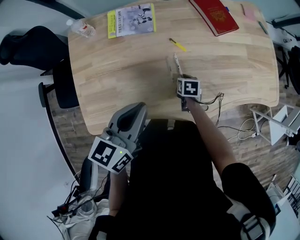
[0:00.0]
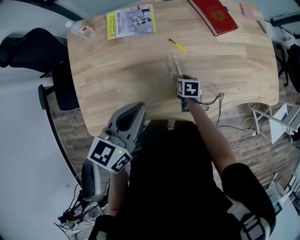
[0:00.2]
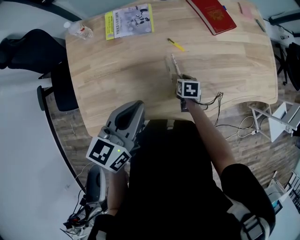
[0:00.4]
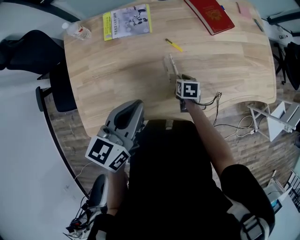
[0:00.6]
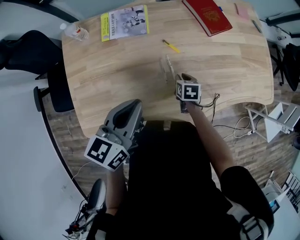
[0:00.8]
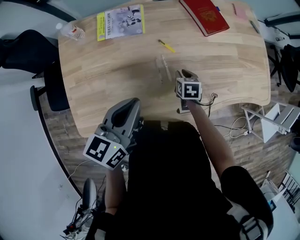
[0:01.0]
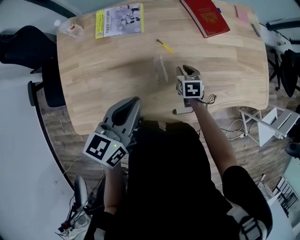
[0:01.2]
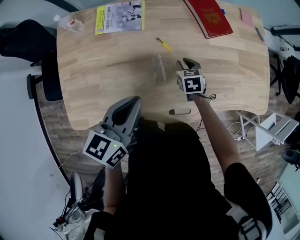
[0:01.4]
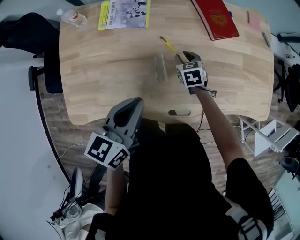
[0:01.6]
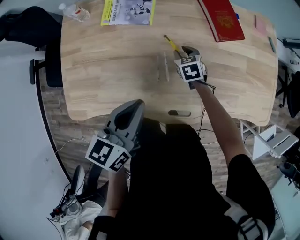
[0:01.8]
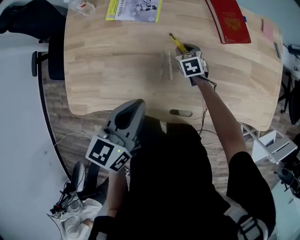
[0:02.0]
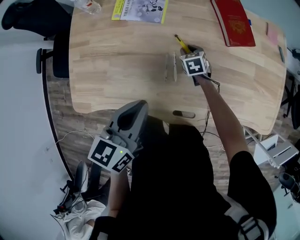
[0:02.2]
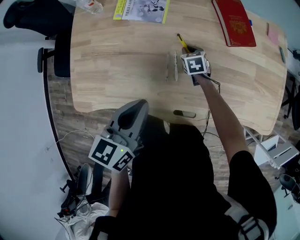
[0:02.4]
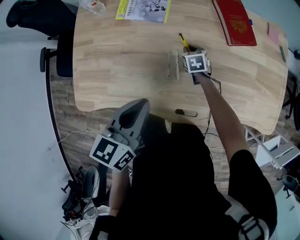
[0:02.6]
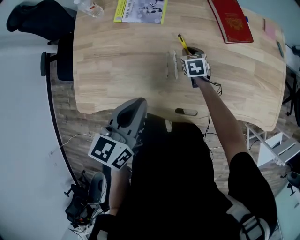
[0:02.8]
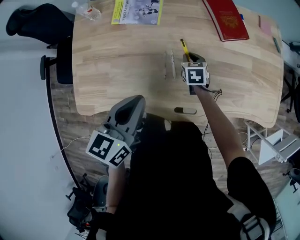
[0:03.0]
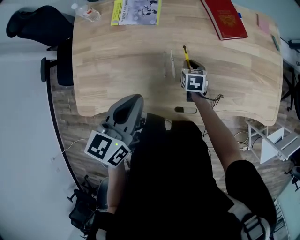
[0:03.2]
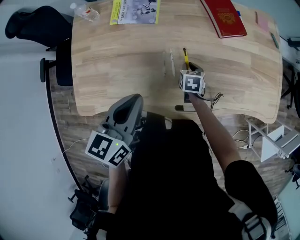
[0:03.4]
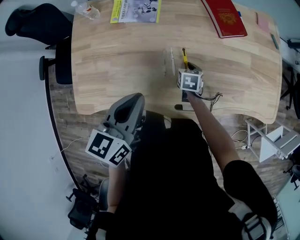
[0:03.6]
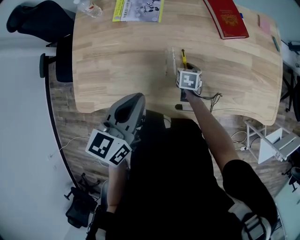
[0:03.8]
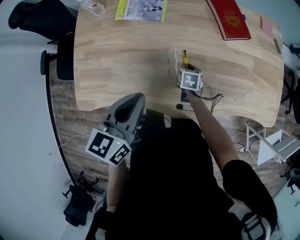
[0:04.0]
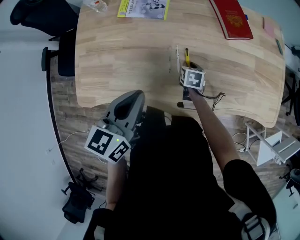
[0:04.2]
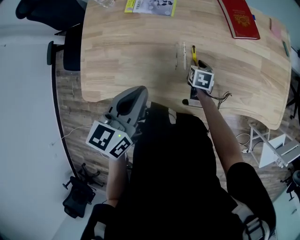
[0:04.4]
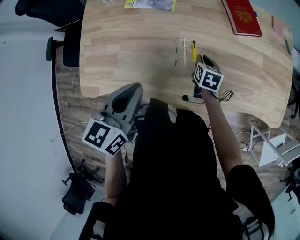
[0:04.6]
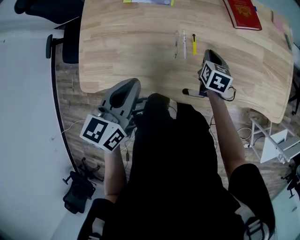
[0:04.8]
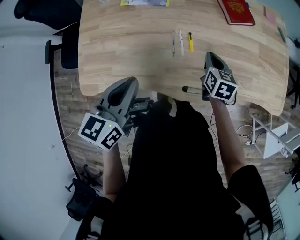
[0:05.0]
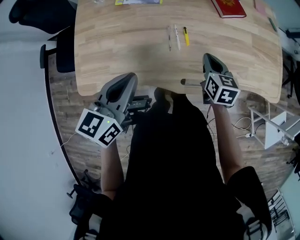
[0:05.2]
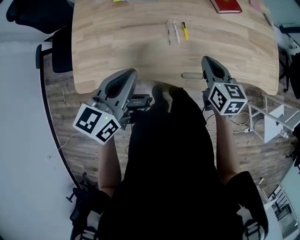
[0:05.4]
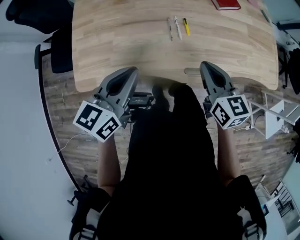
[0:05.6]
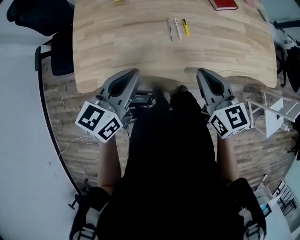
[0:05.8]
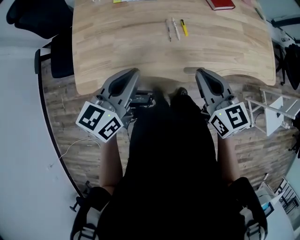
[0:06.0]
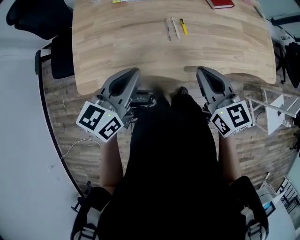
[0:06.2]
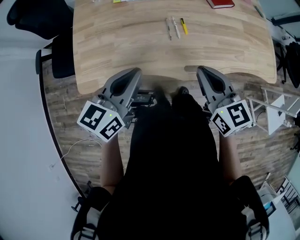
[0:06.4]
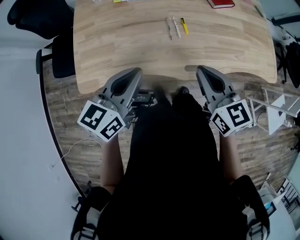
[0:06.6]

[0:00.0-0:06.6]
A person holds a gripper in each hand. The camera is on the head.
0:00.0 to 0:01.6: The right gripper goes about 10 cm forward, and rotates approximately 30 degrees. Meanwhile the left gripper is displaced to the right by about 5 cm.
0:01.6 to 0:03.2: The right gripper ends up about 5 cm from where it was.
0:03.2 to 0:05.0: The right gripper is displaced upward and backward by about 15 cm. Meanwhile the left gripper travels backward by approximately 5 cm.
0:05.0 to 0:06.6: The right gripper heads backward and upward, covering roughly 30 cm, and turns by about 30 degrees; the left gripper travels backward by approximately 10 cm.

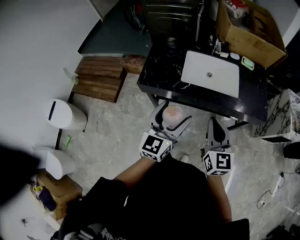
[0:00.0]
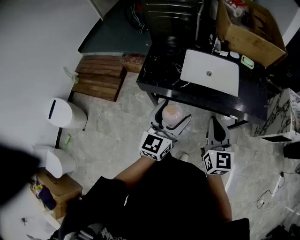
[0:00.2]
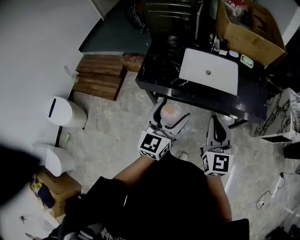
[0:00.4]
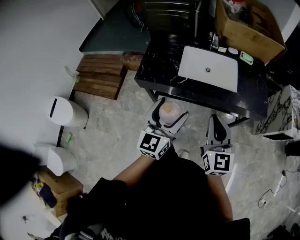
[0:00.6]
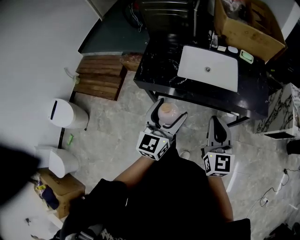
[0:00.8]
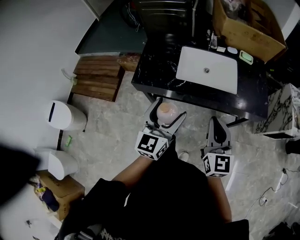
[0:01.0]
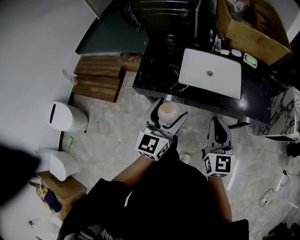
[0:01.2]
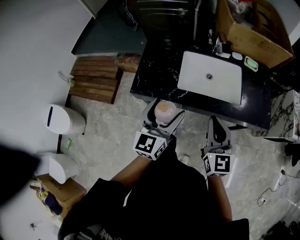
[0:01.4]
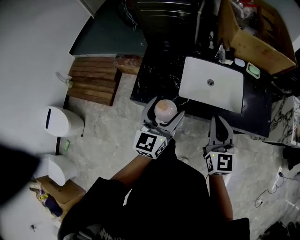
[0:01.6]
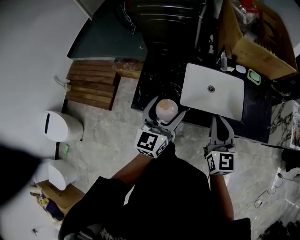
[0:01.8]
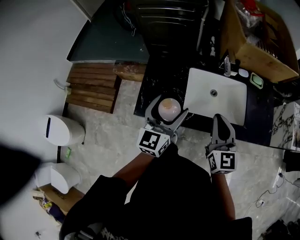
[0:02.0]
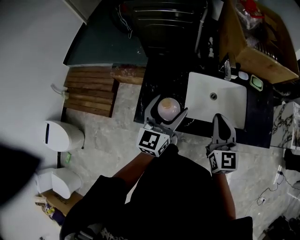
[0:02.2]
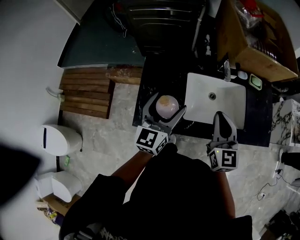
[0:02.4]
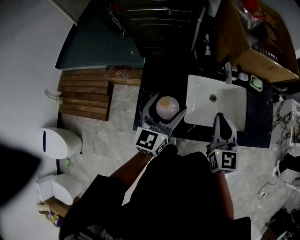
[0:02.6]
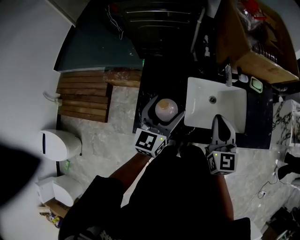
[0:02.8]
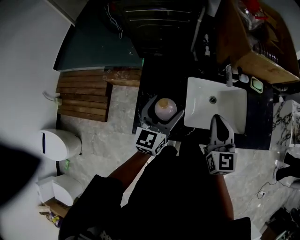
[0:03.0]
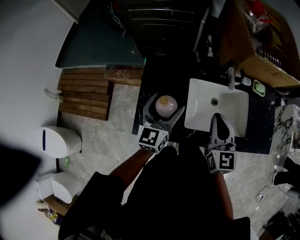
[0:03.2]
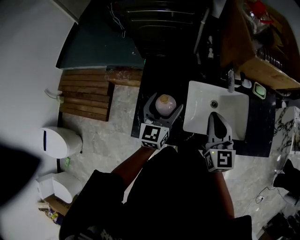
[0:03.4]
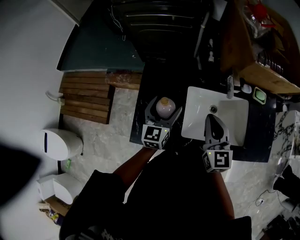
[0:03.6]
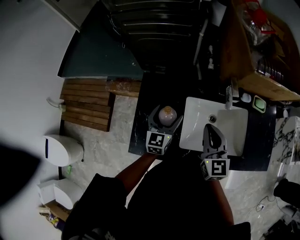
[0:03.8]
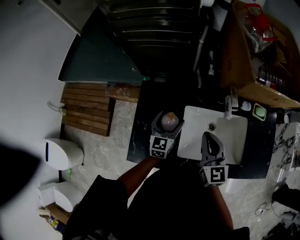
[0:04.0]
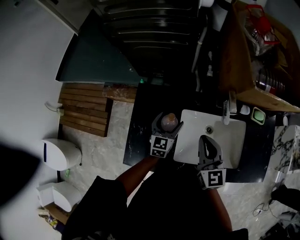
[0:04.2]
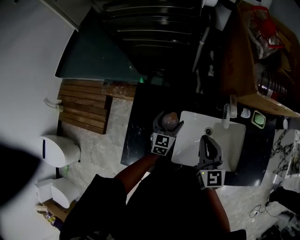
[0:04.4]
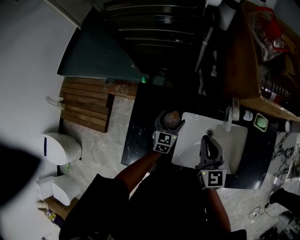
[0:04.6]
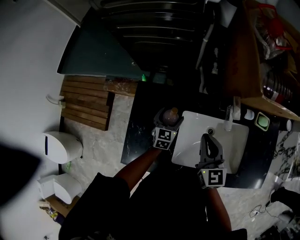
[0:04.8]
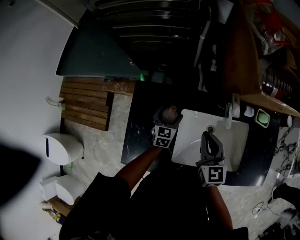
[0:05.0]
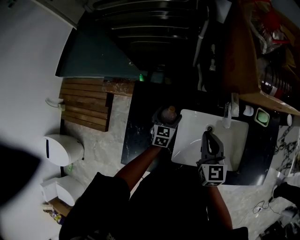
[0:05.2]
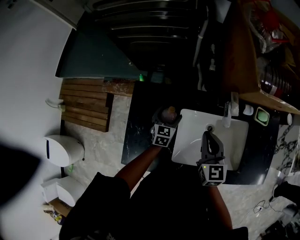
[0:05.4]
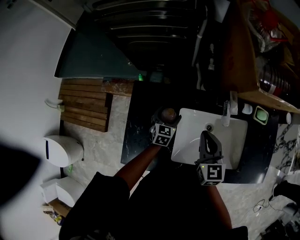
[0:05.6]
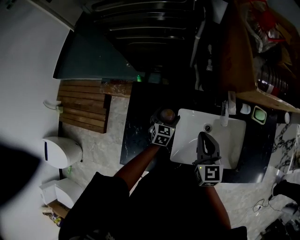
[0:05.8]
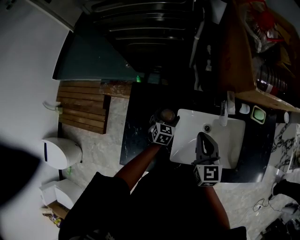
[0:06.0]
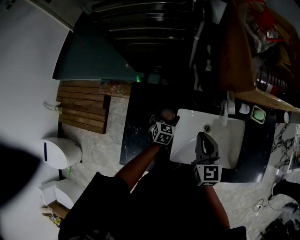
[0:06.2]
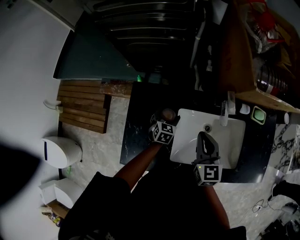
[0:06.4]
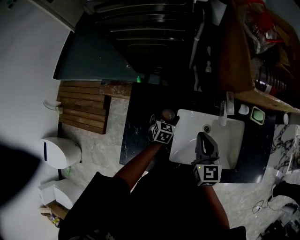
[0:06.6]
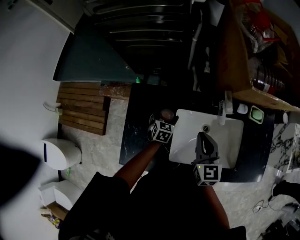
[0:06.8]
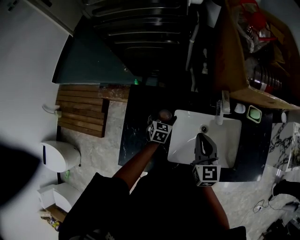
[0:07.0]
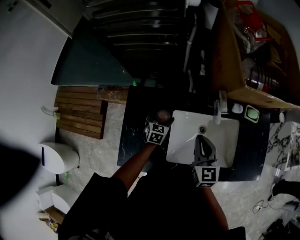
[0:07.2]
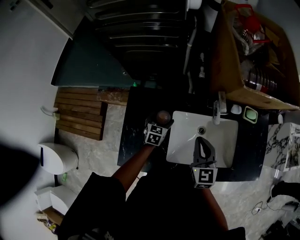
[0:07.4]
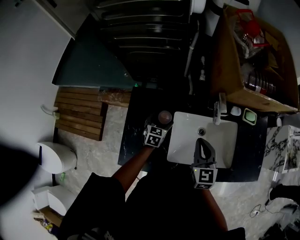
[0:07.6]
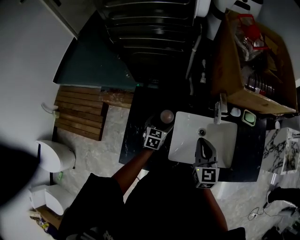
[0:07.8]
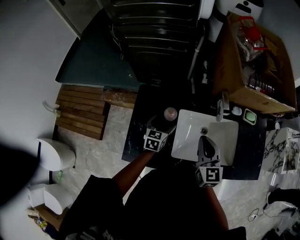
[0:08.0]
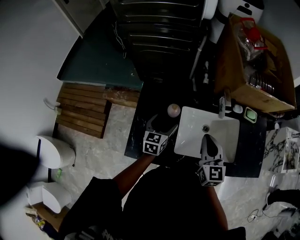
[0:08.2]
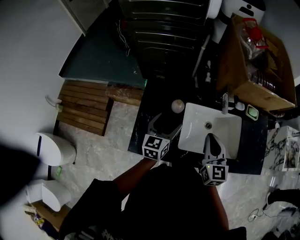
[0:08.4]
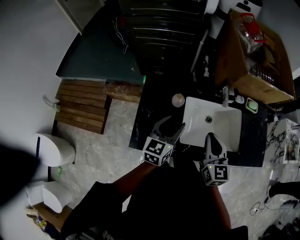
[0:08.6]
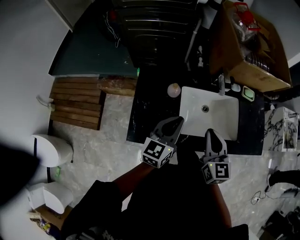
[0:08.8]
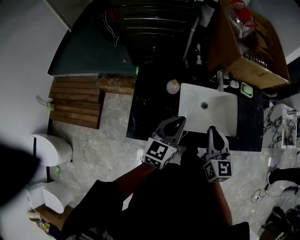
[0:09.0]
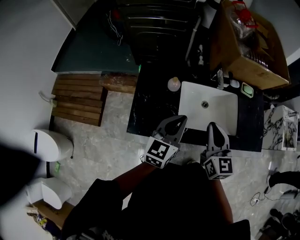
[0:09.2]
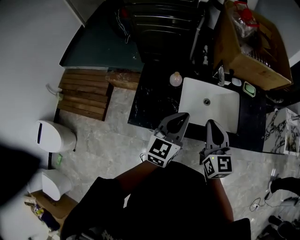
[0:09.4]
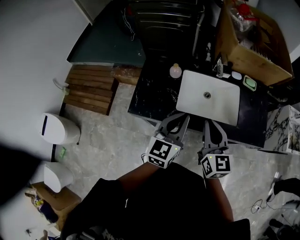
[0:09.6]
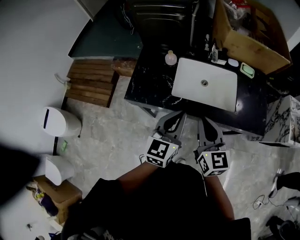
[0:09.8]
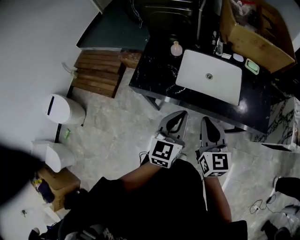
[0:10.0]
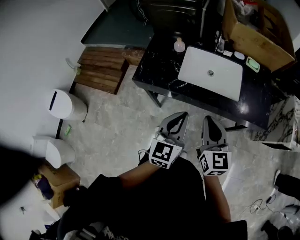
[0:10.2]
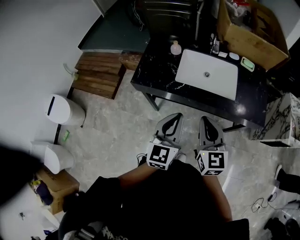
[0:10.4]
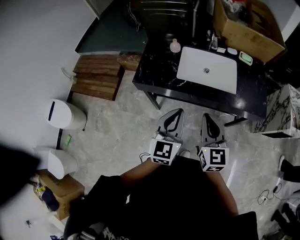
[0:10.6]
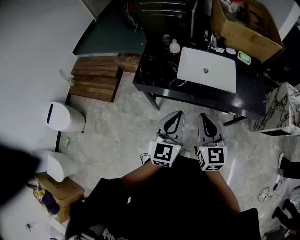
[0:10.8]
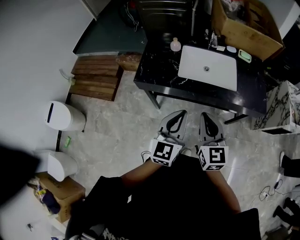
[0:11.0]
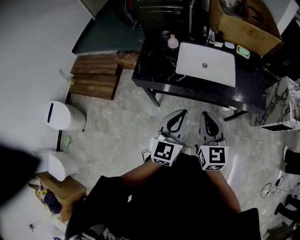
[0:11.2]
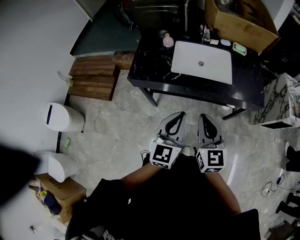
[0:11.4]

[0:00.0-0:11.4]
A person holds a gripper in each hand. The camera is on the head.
0:00.0 to 0:01.4: The grippers both shift forward by some 10 cm.
0:01.4 to 0:02.8: Both grippers move forward and to the left, some 25 cm.
0:02.8 to 0:04.2: The right gripper is displaced forward and downward by about 15 cm. Meanwhile the left gripper shifts approximately 25 cm downward and forward.
0:04.2 to 0:05.6: The left gripper shifts roughly 10 cm downward. Meanwhile the right gripper moves roughly 5 cm.
0:05.6 to 0:07.2: There are only small adjustments of the grippers.
0:07.2 to 0:08.6: The right gripper moves backward and upward, approximately 15 cm, while the left gripper heads upward and backward, covering roughly 30 cm, and changes its angle by some 30 degrees.
0:08.6 to 0:10.0: The grippers both shift backward and to the right by about 30 cm. The left gripper closes its fingers.
0:10.0 to 0:11.4: The grippers both shift backward by roughly 10 cm.

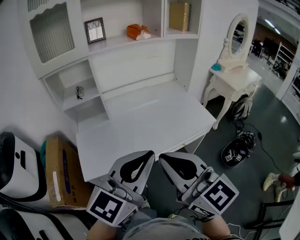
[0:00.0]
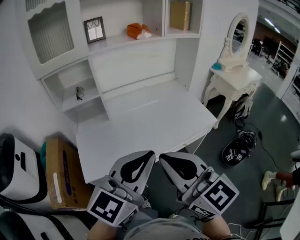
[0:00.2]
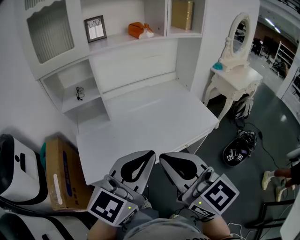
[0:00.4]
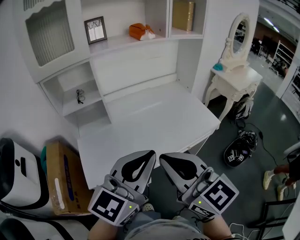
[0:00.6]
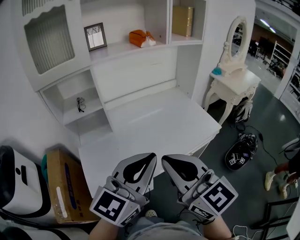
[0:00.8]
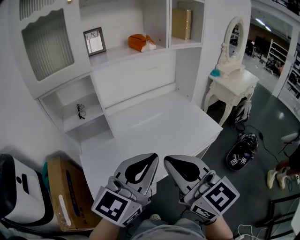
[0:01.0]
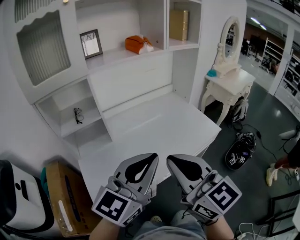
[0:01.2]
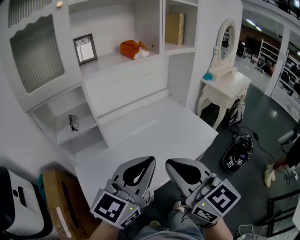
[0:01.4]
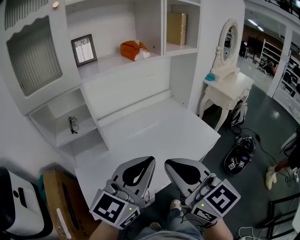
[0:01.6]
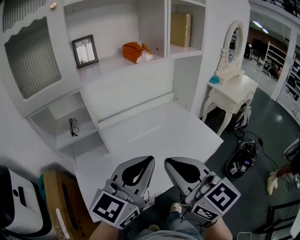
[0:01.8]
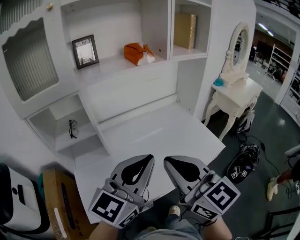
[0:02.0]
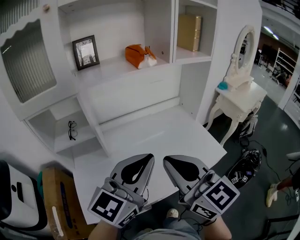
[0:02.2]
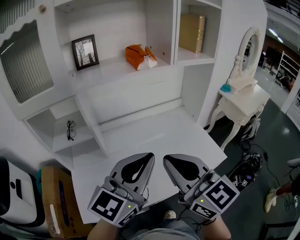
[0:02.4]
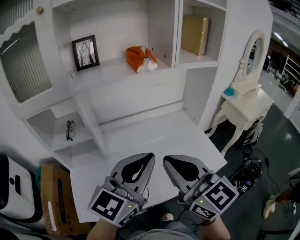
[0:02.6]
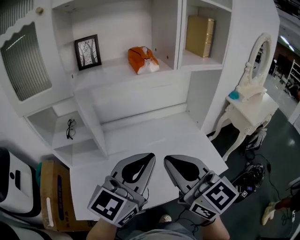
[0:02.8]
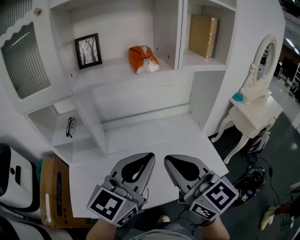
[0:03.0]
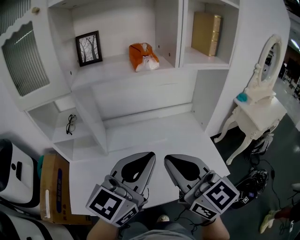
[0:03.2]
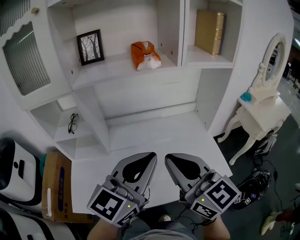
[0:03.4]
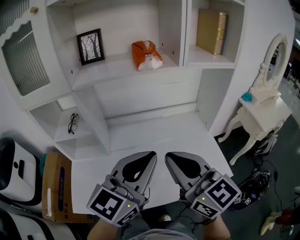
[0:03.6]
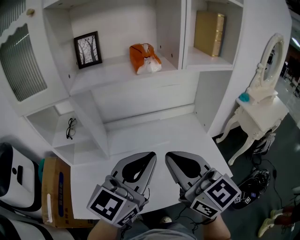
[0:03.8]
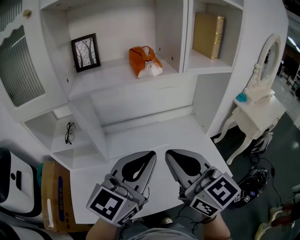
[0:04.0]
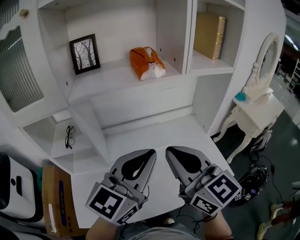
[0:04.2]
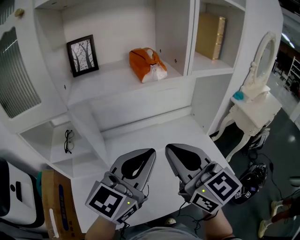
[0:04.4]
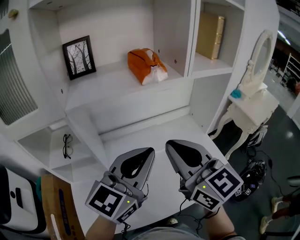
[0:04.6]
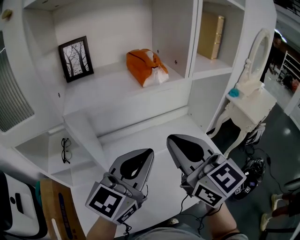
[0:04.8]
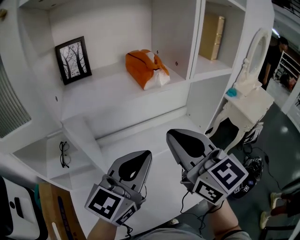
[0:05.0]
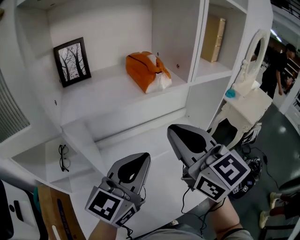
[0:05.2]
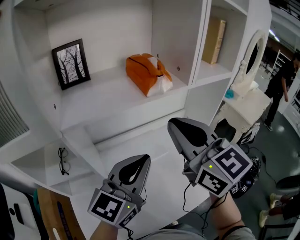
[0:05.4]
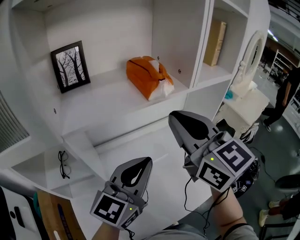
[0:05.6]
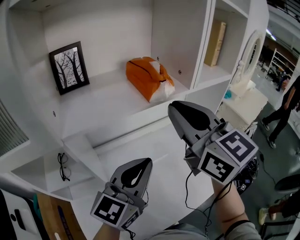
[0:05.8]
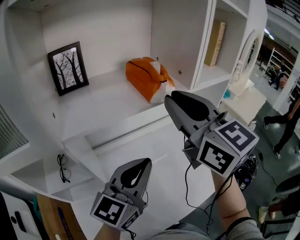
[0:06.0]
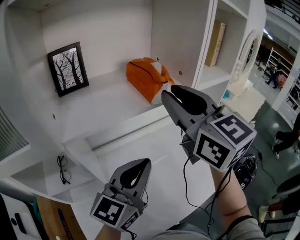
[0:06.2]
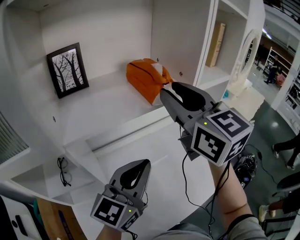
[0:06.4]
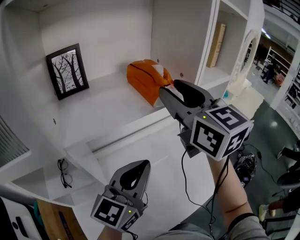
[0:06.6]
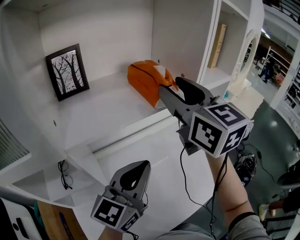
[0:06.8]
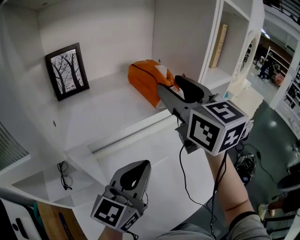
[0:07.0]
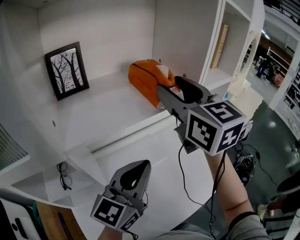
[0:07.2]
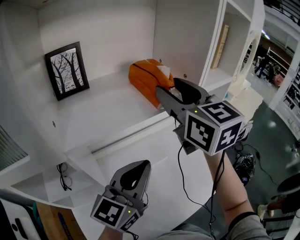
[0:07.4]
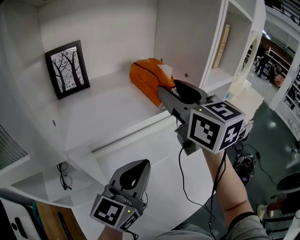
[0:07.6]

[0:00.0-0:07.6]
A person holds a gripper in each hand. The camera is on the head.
0:00.0 to 0:01.6: Both grippers move forward, some 15 cm.
0:01.6 to 0:03.0: Both grippers move forward and to the right, some 15 cm.
0:03.0 to 0:04.6: Both grippers move forward, approximately 10 cm.
0:04.6 to 0:06.0: The right gripper travels forward and upward by about 15 cm. Meanwhile the left gripper ends up some 5 cm from where it was.
0:06.0 to 0:07.6: The right gripper is displaced forward by roughly 5 cm, and opens up.
